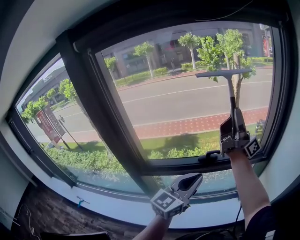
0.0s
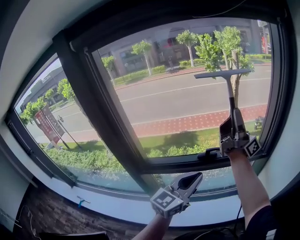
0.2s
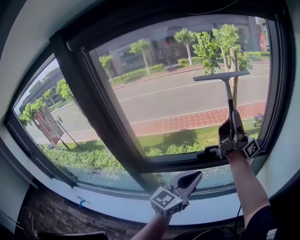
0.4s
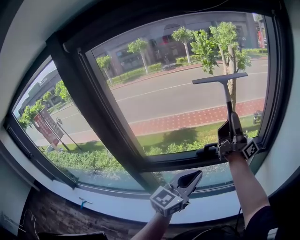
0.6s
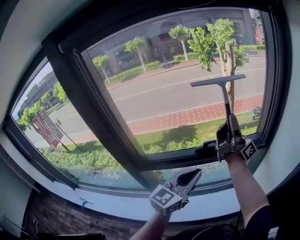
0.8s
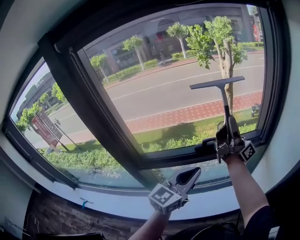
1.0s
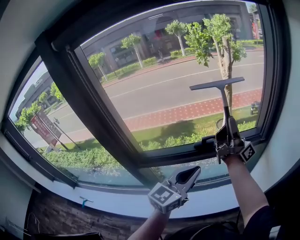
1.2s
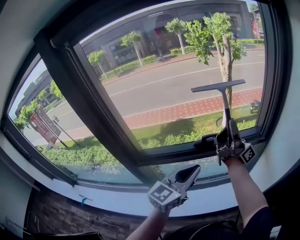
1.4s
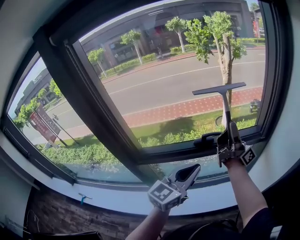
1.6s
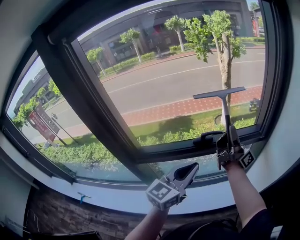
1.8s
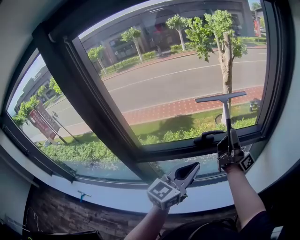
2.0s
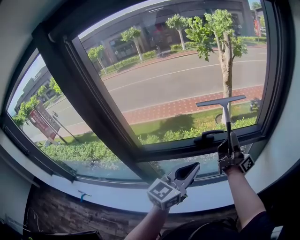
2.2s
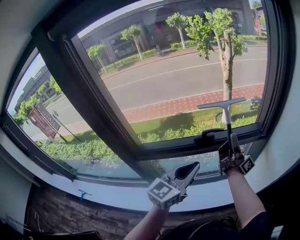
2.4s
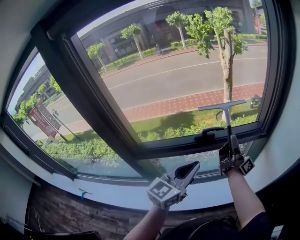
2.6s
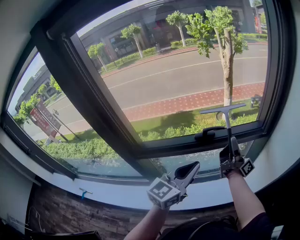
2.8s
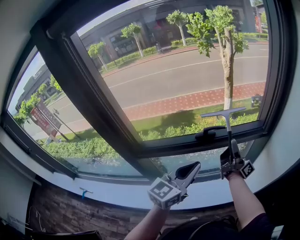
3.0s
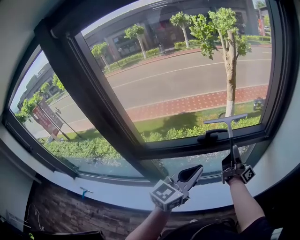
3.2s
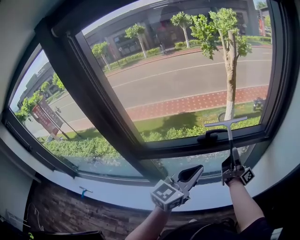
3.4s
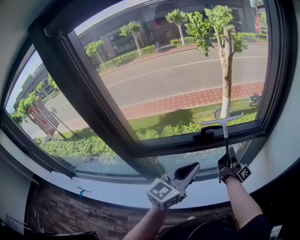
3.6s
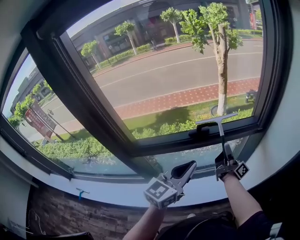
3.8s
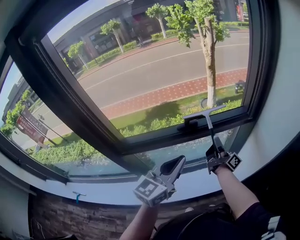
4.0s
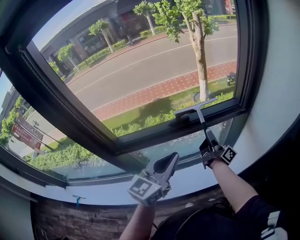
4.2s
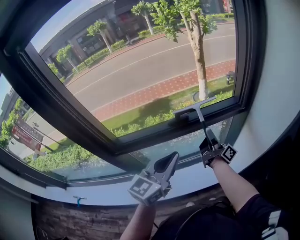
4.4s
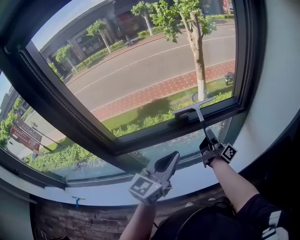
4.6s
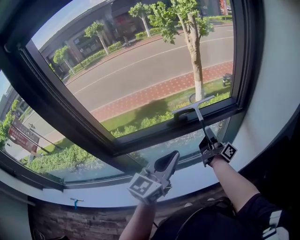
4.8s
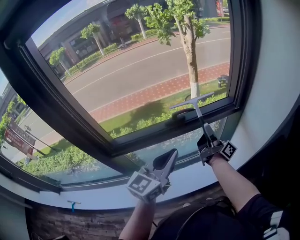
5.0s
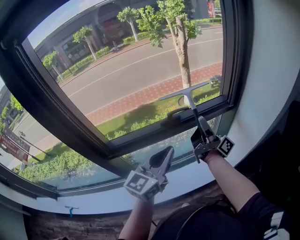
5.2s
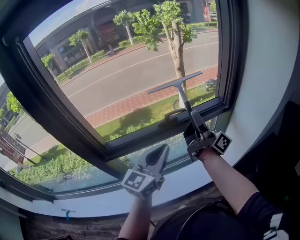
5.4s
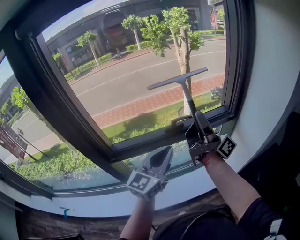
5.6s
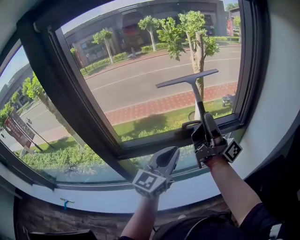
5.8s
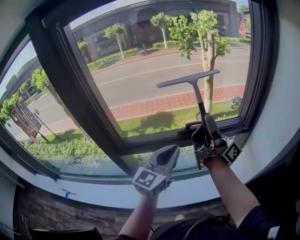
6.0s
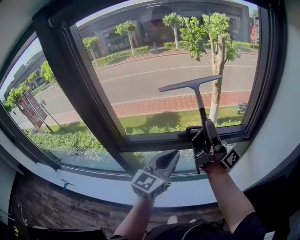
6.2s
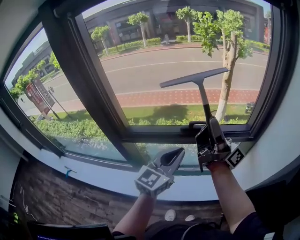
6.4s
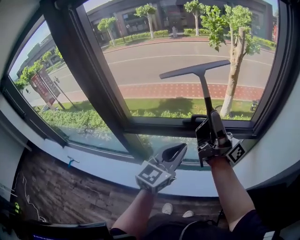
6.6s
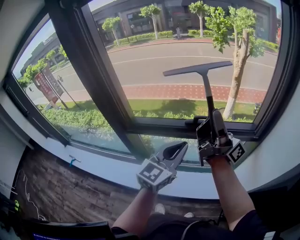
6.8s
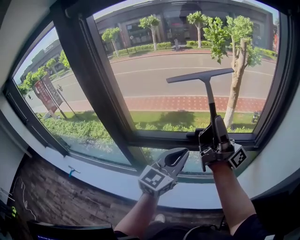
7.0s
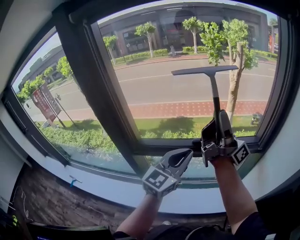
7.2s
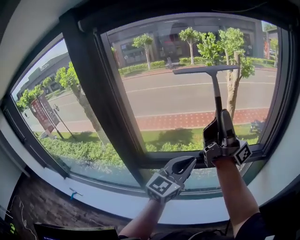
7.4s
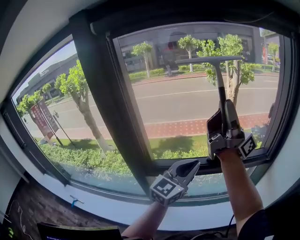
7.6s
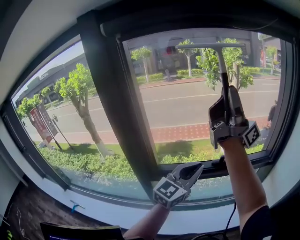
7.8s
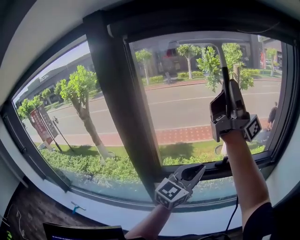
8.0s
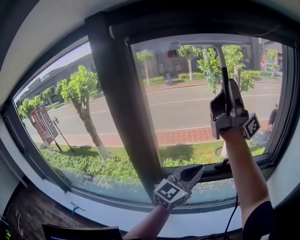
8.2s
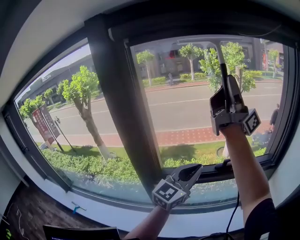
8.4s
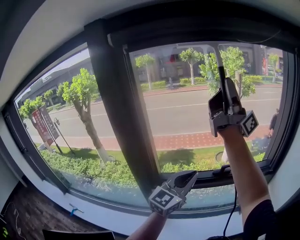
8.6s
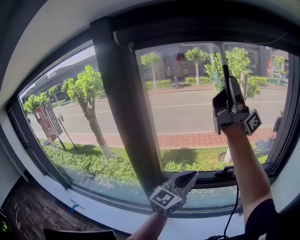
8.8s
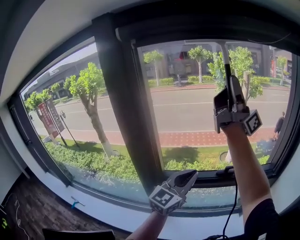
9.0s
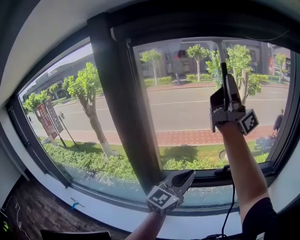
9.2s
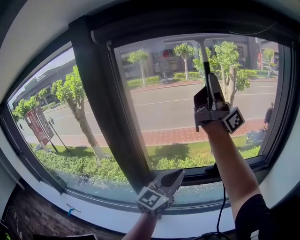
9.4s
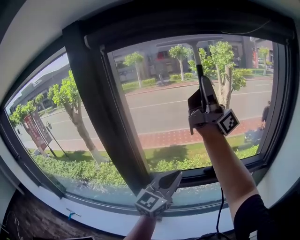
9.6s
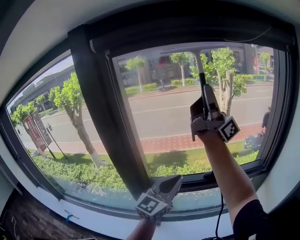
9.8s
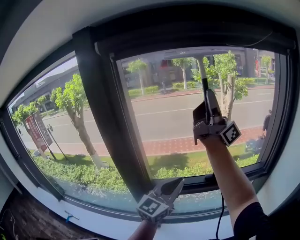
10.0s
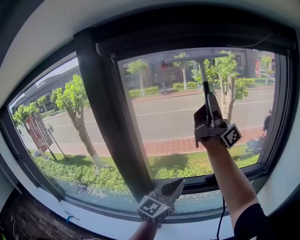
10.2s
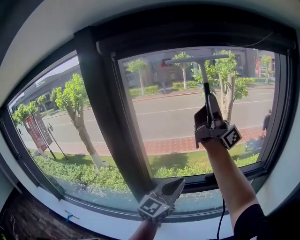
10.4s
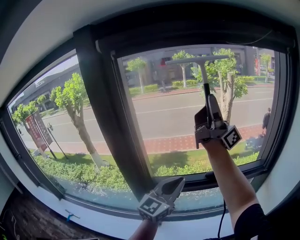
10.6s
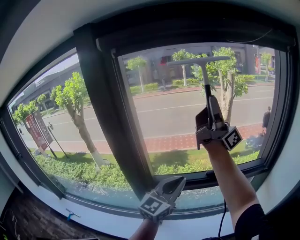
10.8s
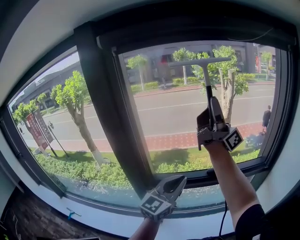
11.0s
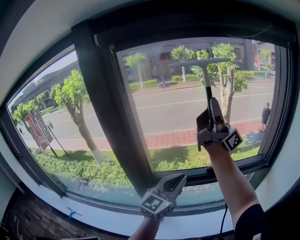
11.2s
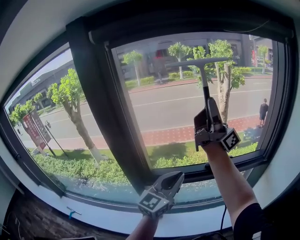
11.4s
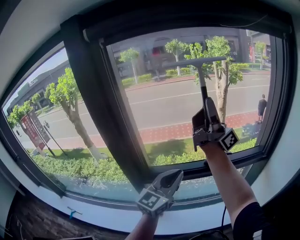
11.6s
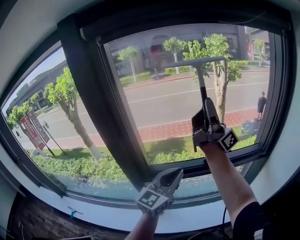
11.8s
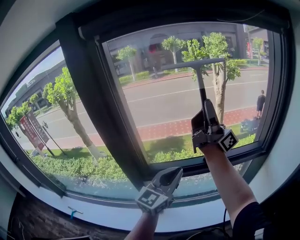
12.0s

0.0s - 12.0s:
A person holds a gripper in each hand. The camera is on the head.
6.0s - 7.6s: The left gripper ends up roughly 5 cm from where it was.
7.6s - 9.0s: The left gripper changes place by approximately 5 cm.

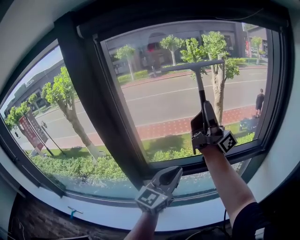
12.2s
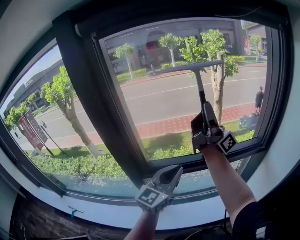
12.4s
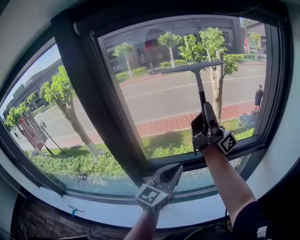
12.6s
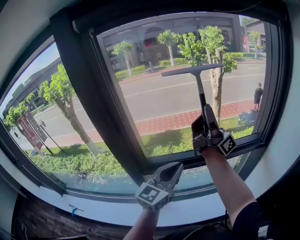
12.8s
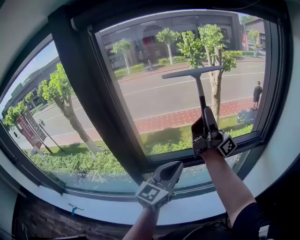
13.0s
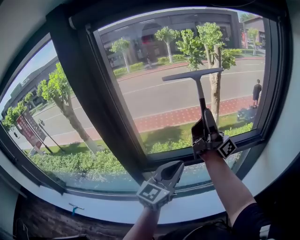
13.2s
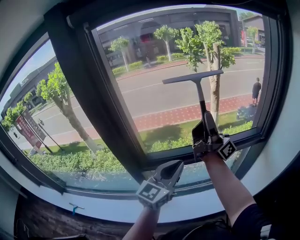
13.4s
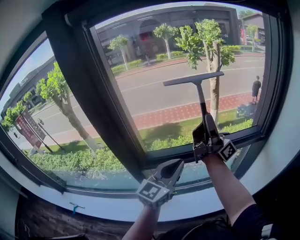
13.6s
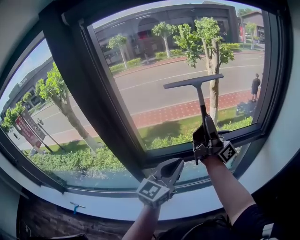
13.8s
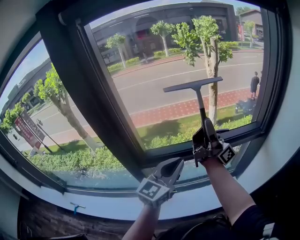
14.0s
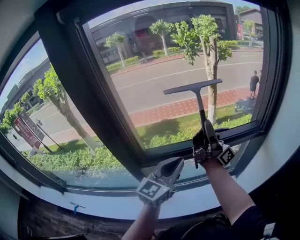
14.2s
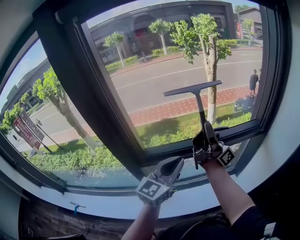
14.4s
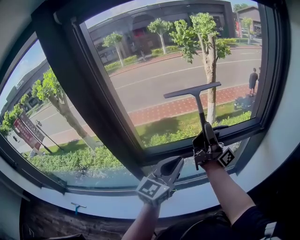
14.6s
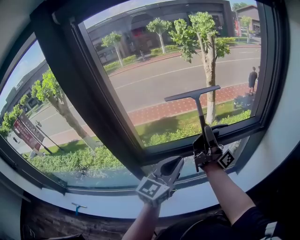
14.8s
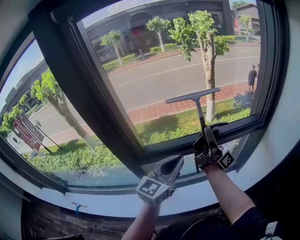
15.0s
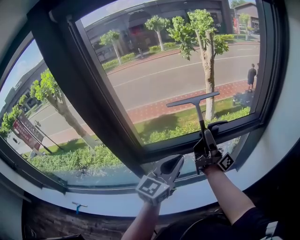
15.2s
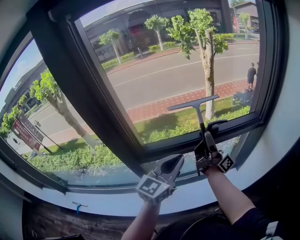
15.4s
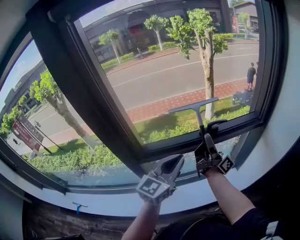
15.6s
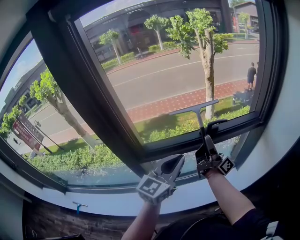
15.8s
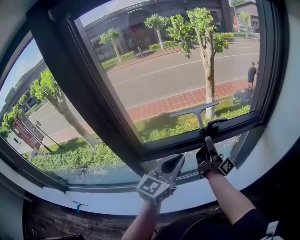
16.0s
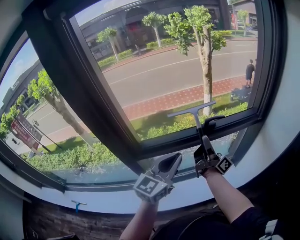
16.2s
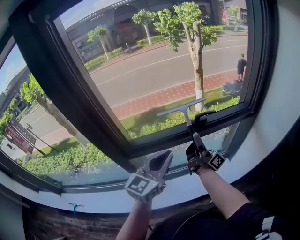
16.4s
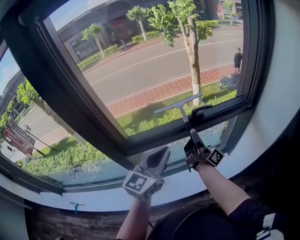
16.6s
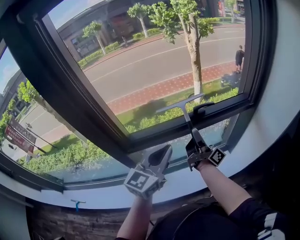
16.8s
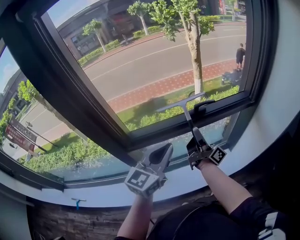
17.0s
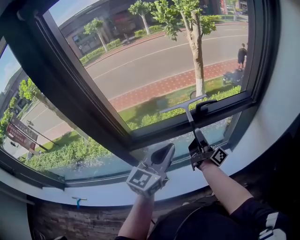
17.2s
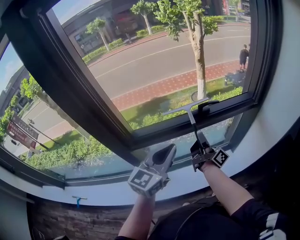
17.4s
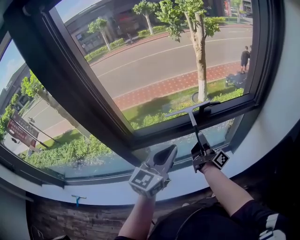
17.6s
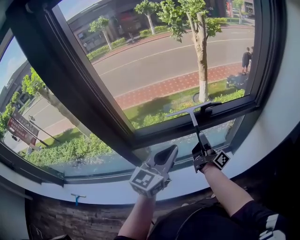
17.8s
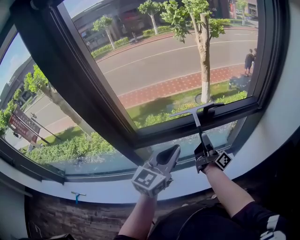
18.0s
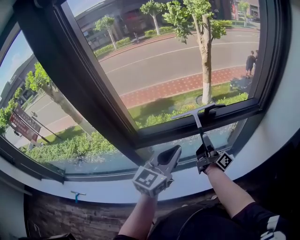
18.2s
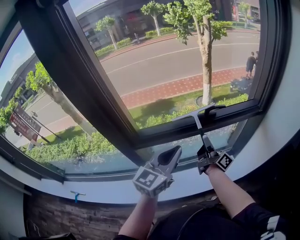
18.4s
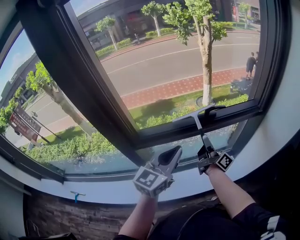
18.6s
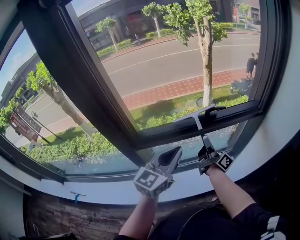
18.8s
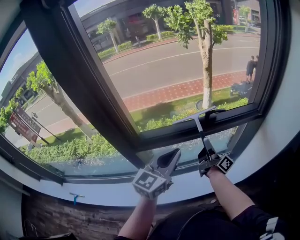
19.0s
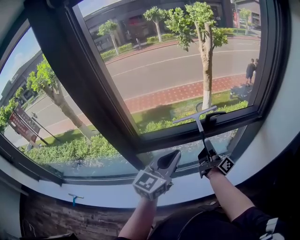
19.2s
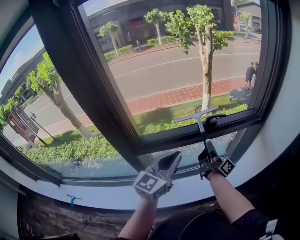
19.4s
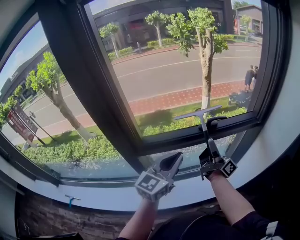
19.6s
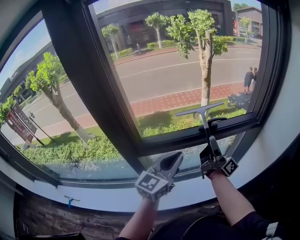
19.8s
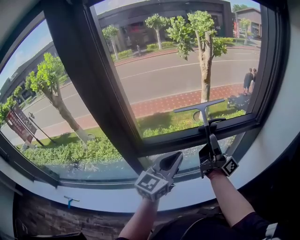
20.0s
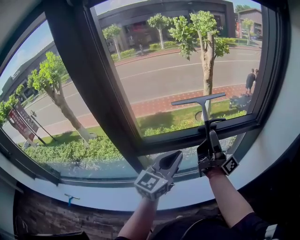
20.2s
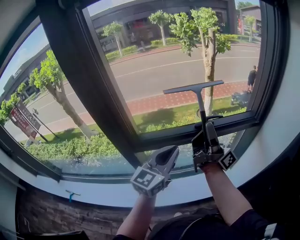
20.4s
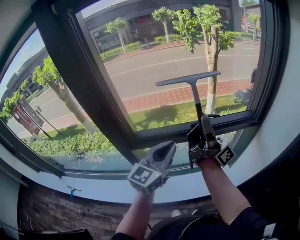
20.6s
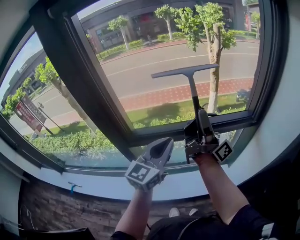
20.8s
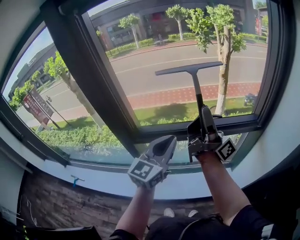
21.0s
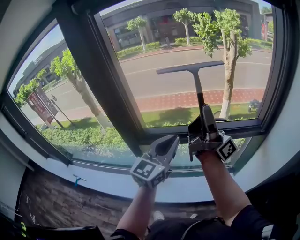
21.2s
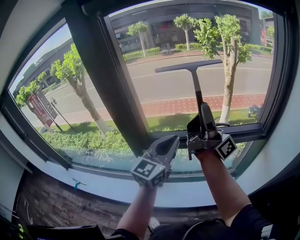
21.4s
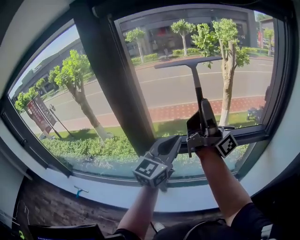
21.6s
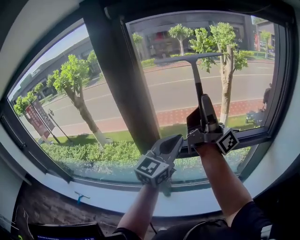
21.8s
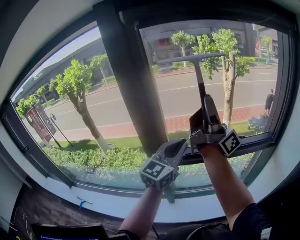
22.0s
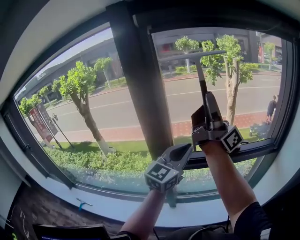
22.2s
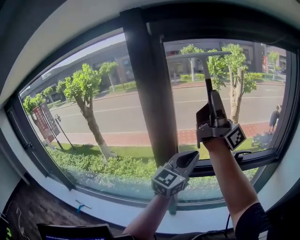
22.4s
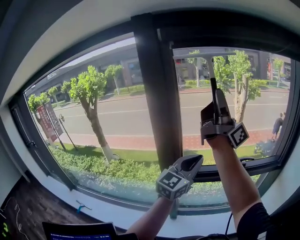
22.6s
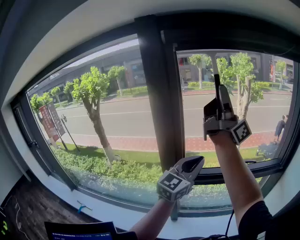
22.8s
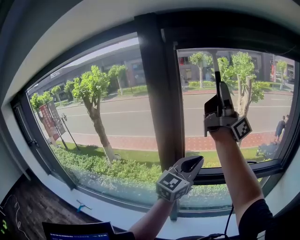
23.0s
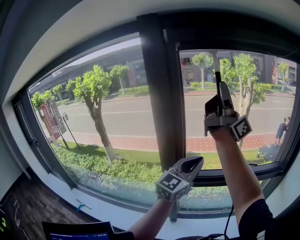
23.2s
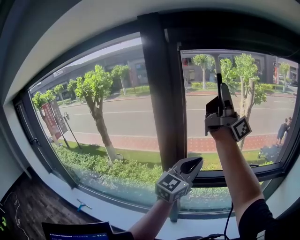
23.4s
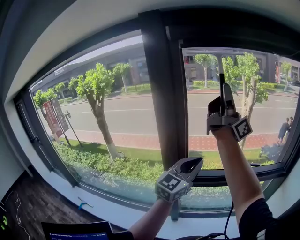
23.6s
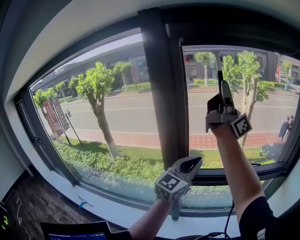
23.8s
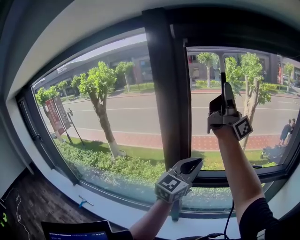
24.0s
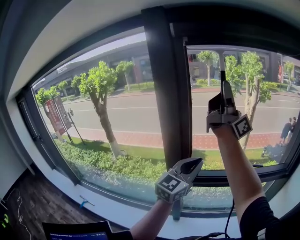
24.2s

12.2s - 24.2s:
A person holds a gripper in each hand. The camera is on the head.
19.8s - 21.2s: The left gripper heads upward, covering approximately 5 cm.
21.2s - 22.6s: The left gripper ends up some 15 cm from where it was.
22.6s - 24.2s: The left gripper ends up some 5 cm from where it was.

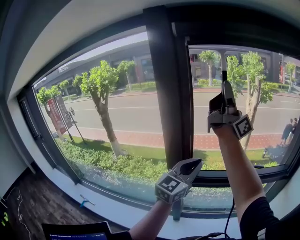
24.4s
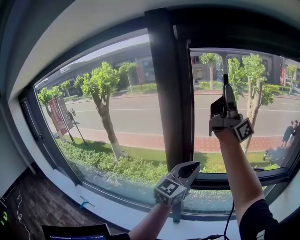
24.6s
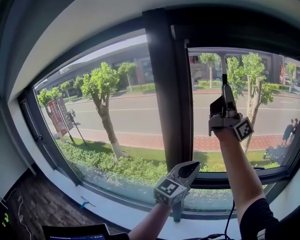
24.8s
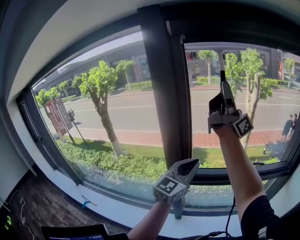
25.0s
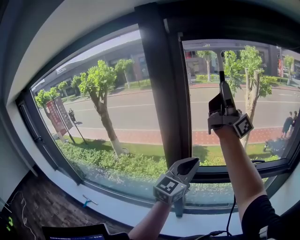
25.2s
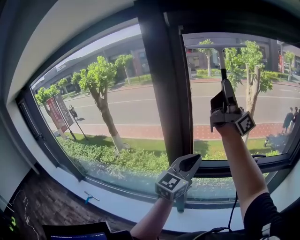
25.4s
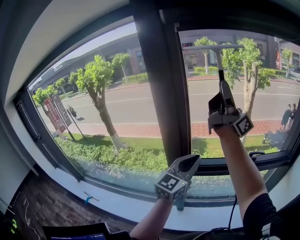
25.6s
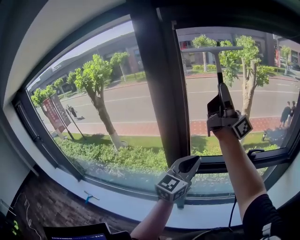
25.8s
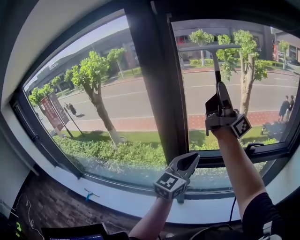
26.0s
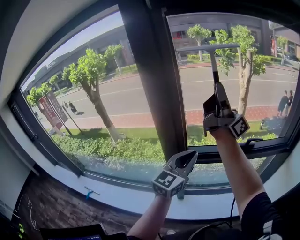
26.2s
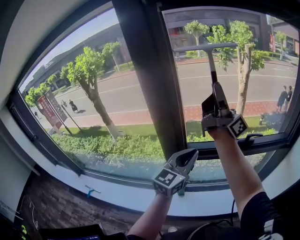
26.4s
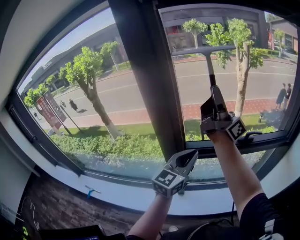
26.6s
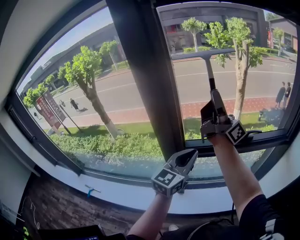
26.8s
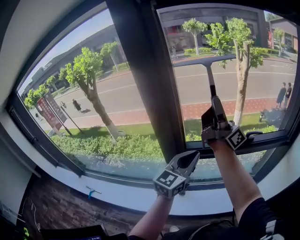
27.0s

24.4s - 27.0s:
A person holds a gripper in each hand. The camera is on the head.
25.6s - 27.0s: The left gripper heads downward, covering roughly 5 cm.
